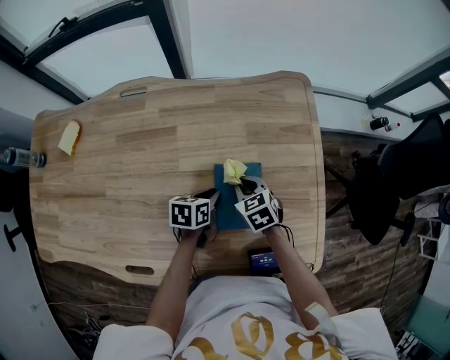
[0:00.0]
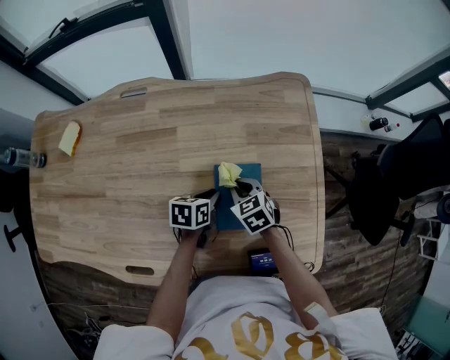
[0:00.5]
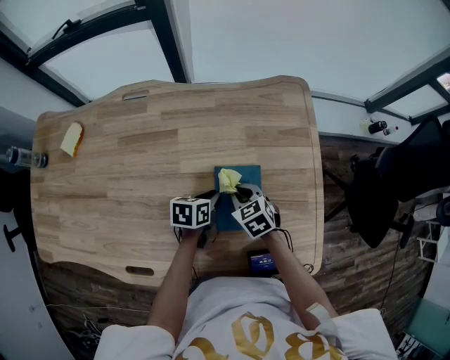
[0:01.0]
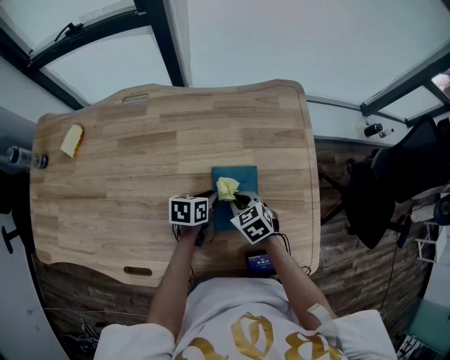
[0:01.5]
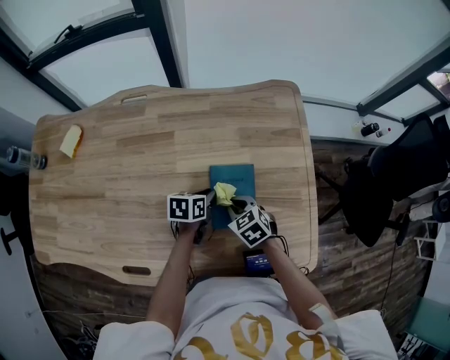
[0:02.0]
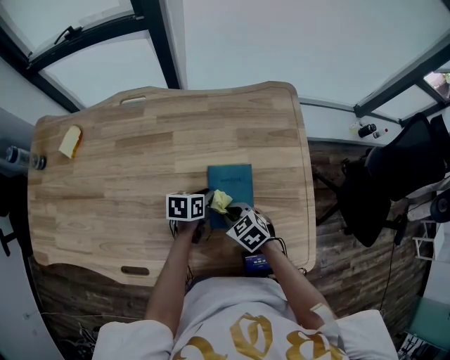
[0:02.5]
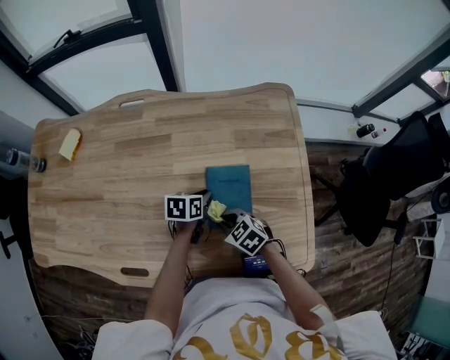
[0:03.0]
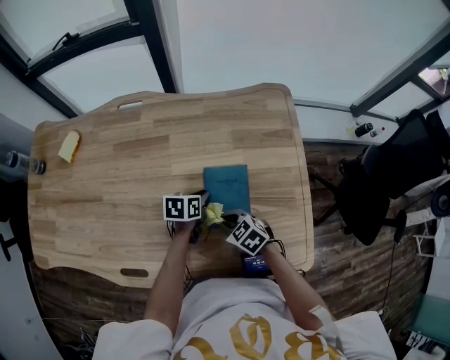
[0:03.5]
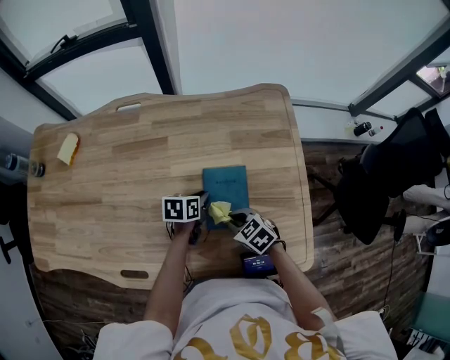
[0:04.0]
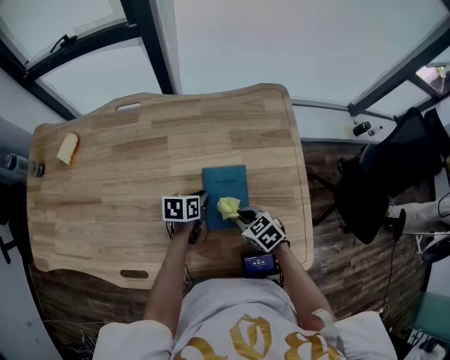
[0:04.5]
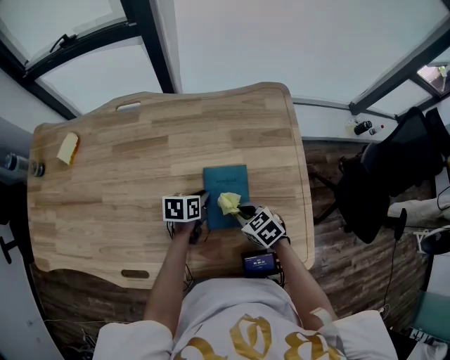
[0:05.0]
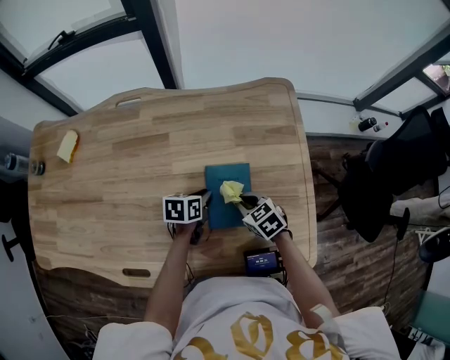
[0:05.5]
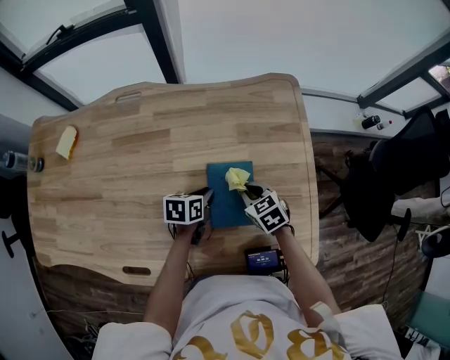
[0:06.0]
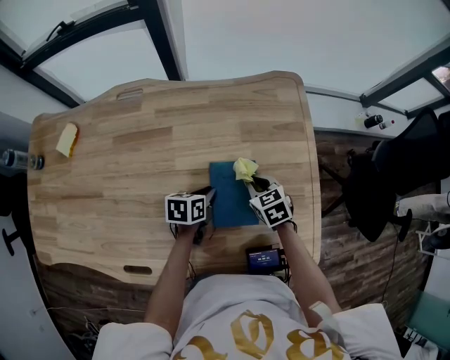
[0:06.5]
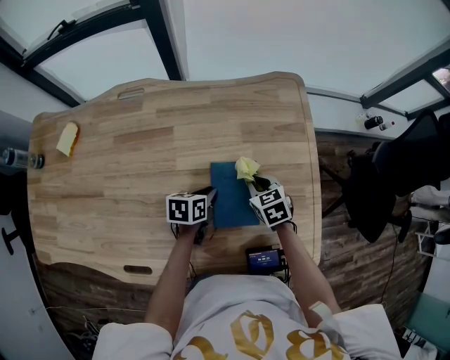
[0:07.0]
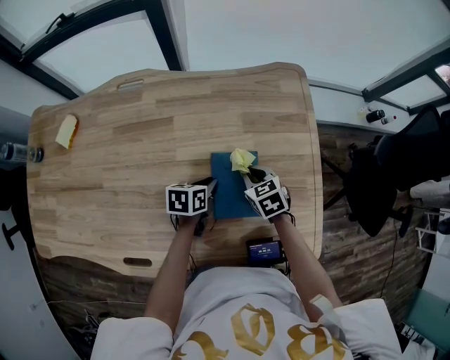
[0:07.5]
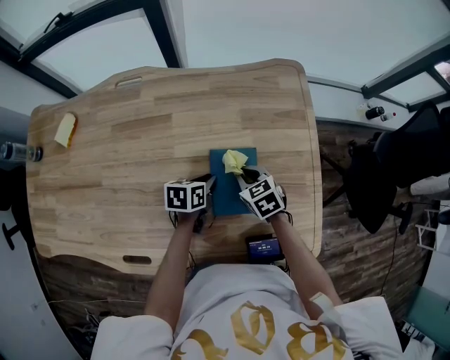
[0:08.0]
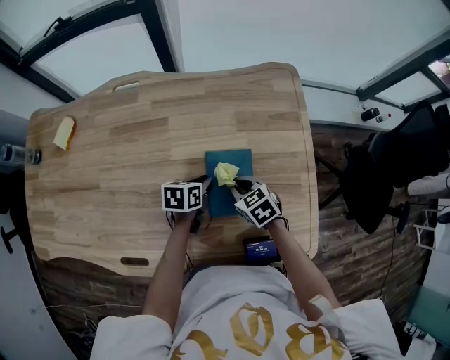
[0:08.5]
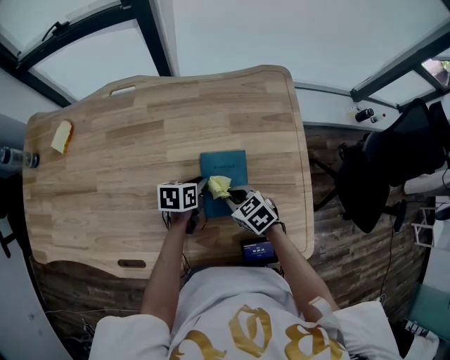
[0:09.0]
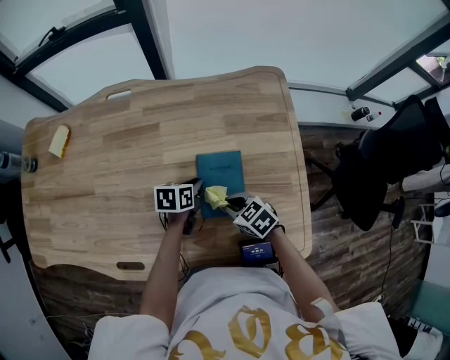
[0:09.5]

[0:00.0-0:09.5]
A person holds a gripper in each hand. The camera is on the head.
0.0 to 2.0 s: The right gripper shifts about 5 cm backward.
2.0 to 4.0 s: The right gripper moves backward, about 5 cm.
4.0 to 5.5 s: The right gripper is displaced forward by approximately 5 cm.
5.5 to 7.5 s: The right gripper heads forward, covering approximately 5 cm.
7.5 to 9.5 s: The right gripper travels backward by approximately 10 cm, and rotates some 20 degrees.

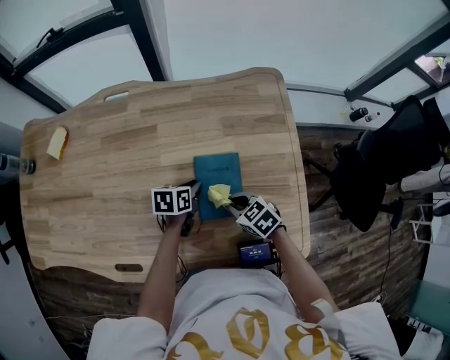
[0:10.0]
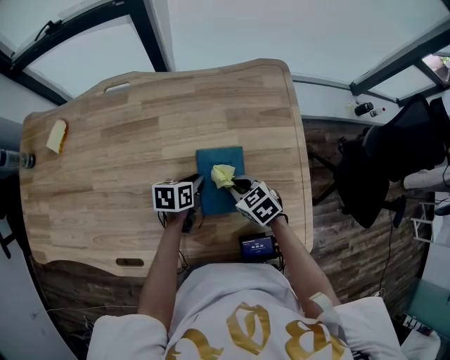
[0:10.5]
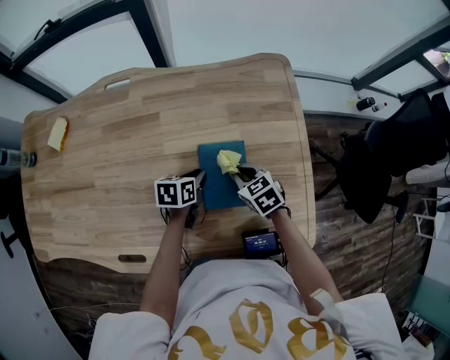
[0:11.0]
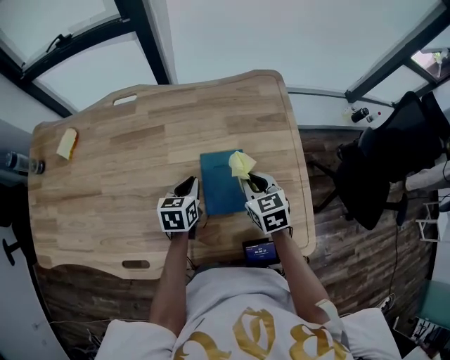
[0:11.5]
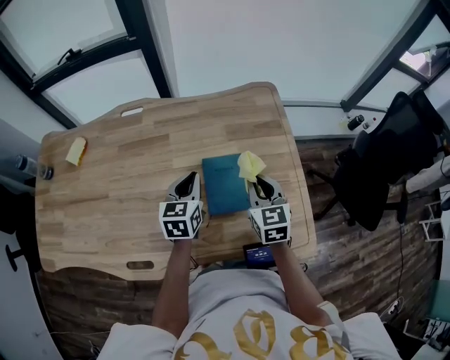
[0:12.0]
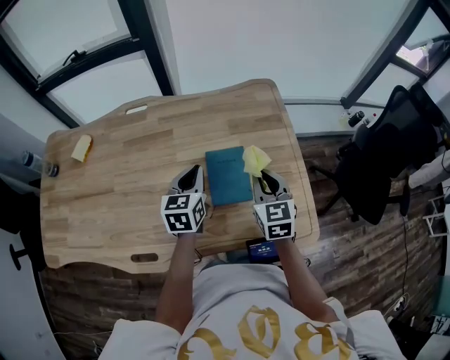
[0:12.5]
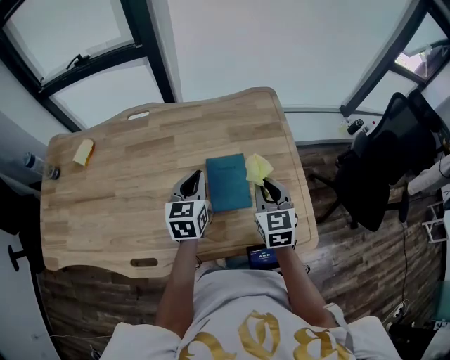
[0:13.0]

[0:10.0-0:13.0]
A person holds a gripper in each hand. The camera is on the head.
10.0 to 11.5 s: The left gripper is displaced upward by about 5 cm, and rotates some 20 degrees; the right gripper moves upward and forward, approximately 10 cm, and rotates approximately 30 degrees.
11.5 to 13.0 s: The left gripper heads upward, covering roughly 15 cm, and rotates approximately 20 degrees. The right gripper moves upward and backward, some 10 cm, and swivels approximately 20 degrees.

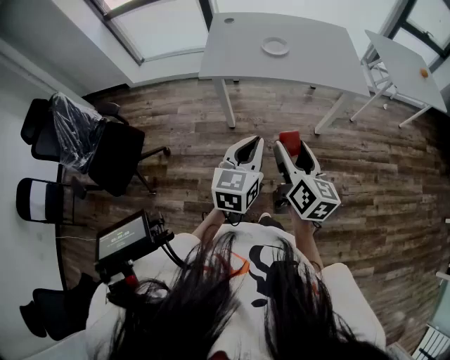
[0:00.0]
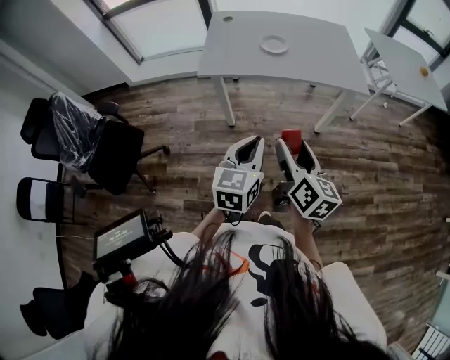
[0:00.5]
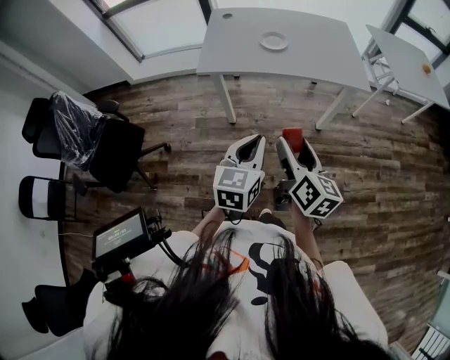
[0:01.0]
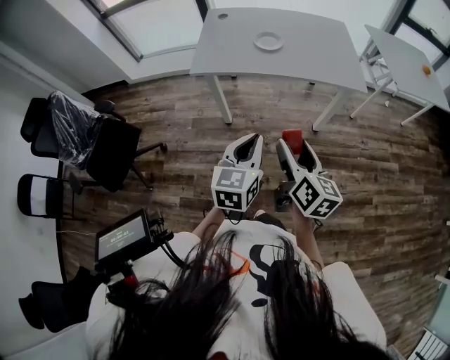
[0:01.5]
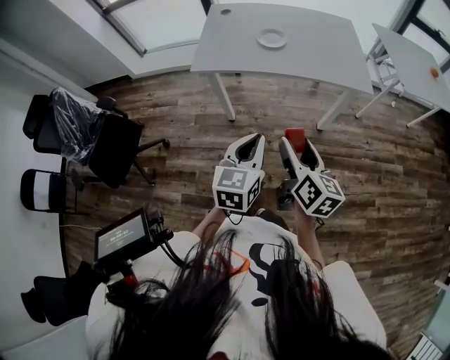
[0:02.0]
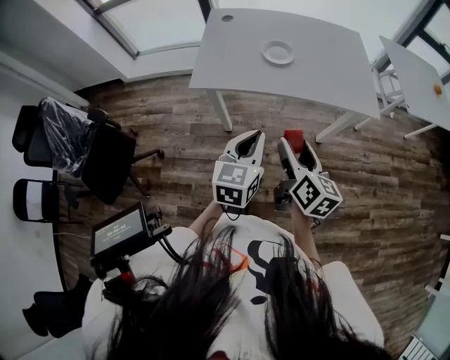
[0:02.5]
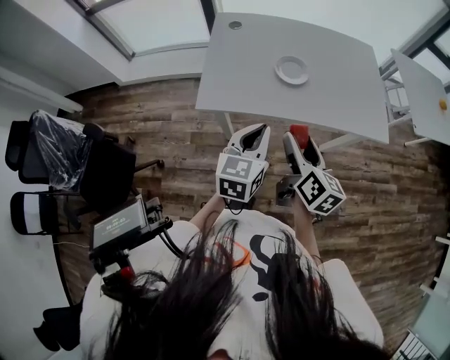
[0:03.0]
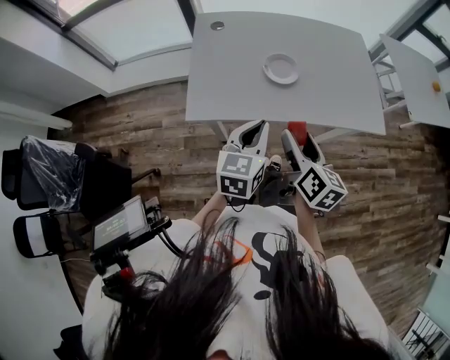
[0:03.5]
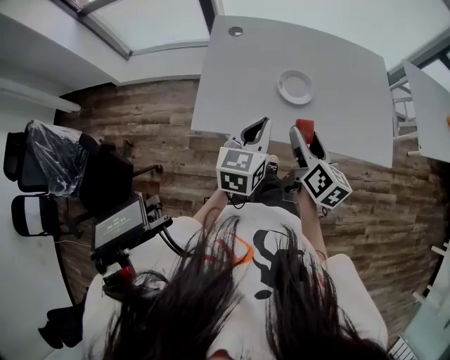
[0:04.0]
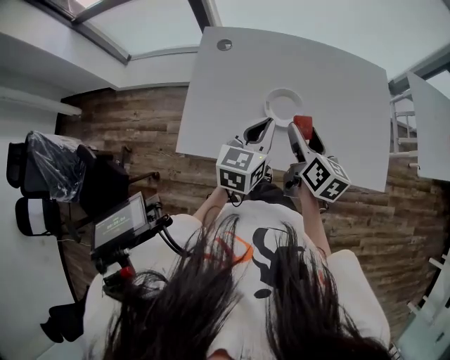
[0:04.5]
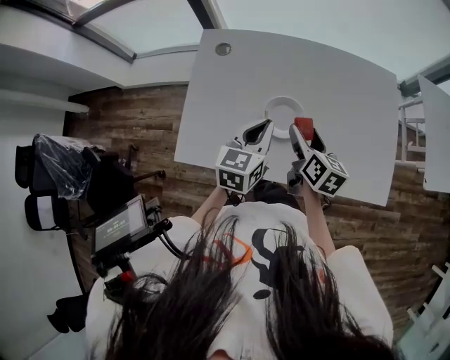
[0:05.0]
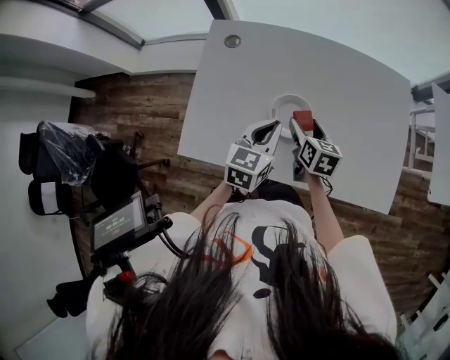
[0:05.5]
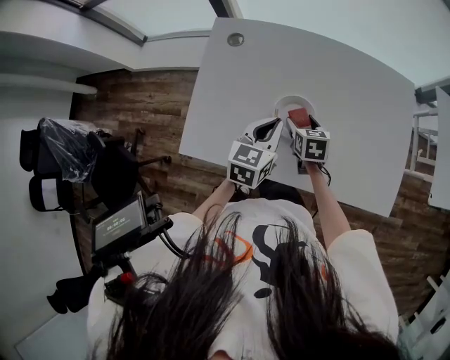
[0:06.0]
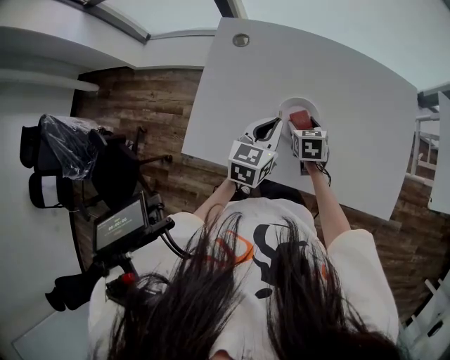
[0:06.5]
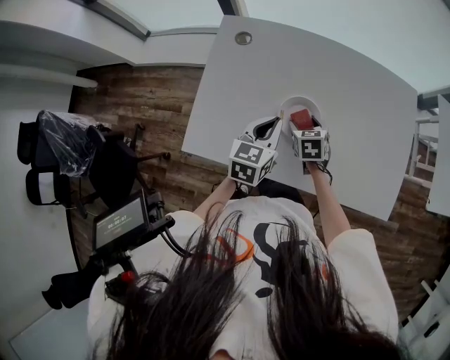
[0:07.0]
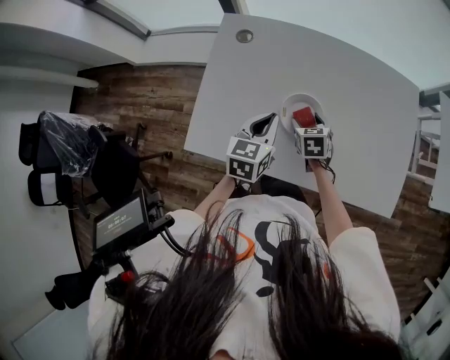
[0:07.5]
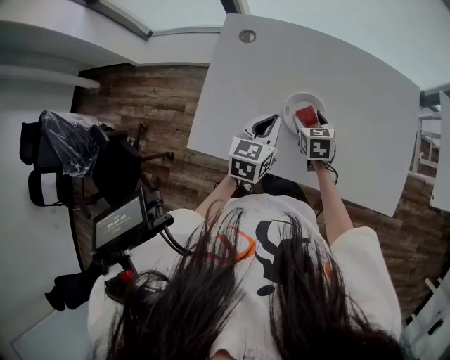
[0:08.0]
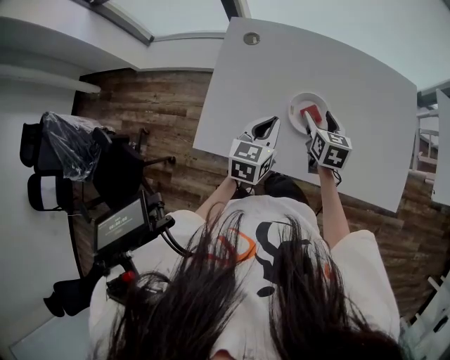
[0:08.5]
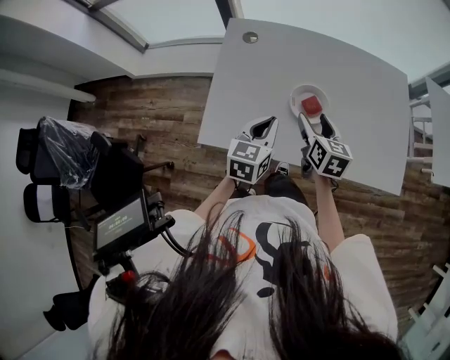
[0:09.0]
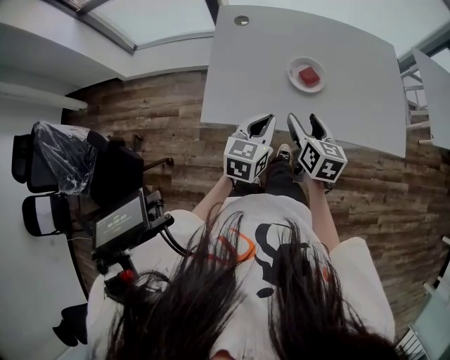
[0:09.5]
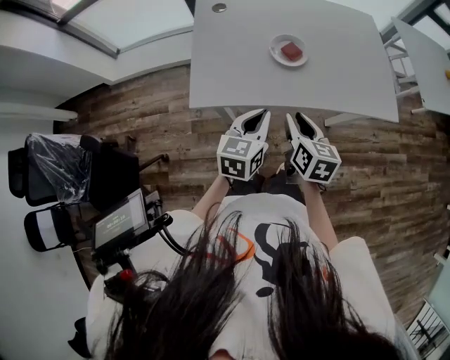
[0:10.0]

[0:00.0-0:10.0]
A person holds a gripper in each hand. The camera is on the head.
0.0 to 2.0 s: Both grippers move to the right, roughly 5 cm.
2.0 to 4.0 s: The two grippers go roughly 40 cm forward.
4.0 to 6.0 s: The right gripper travels forward and downward by some 30 cm, and turns by roughly 40 degrees, while the left gripper heads forward, downward and to the right, covering roughly 20 cm.
6.0 to 8.0 s: The grippers stay close to where they were, moving slightly.
8.0 to 10.0 s: The left gripper heads backward, covering roughly 25 cm; the right gripper moves backward and upward, some 30 cm, changes its angle by approximately 30 degrees, and closes its fingers.

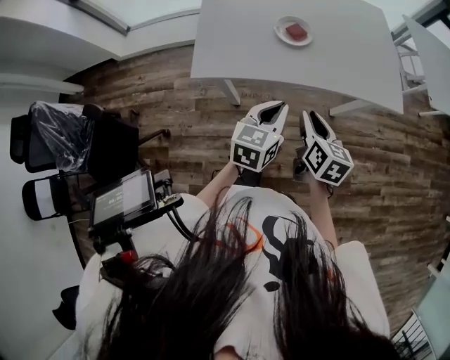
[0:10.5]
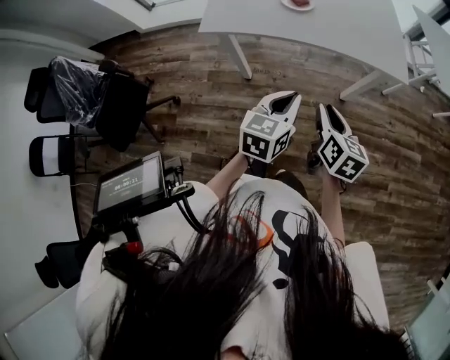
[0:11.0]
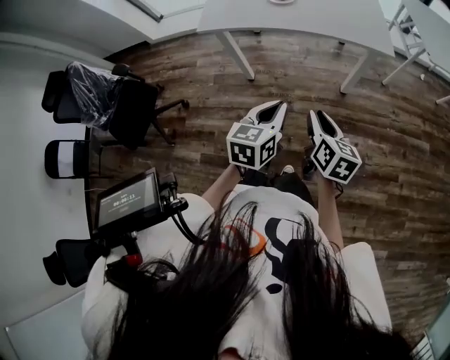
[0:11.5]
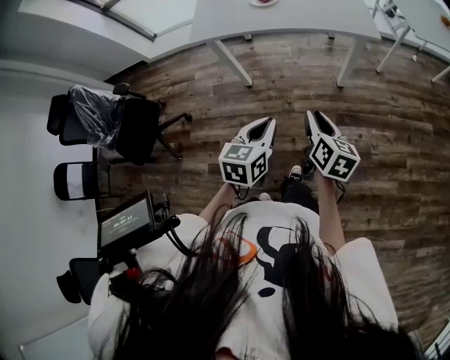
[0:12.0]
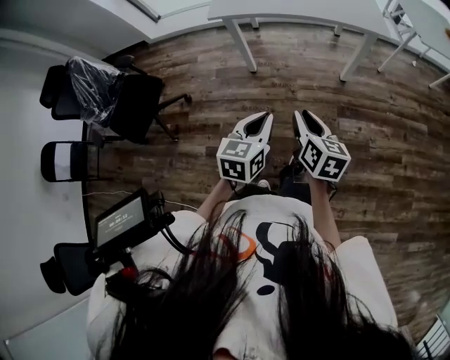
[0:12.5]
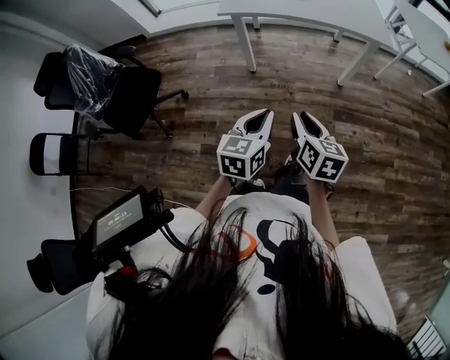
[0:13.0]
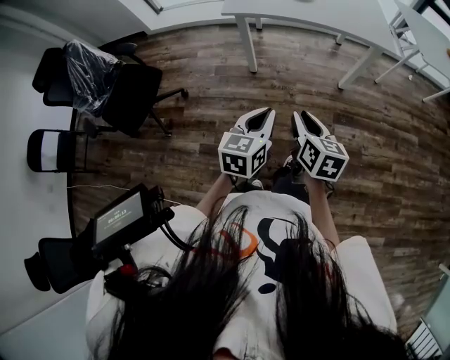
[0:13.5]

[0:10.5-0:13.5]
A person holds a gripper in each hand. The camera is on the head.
10.5 to 12.0 s: The right gripper moves backward and to the right, about 30 cm. The left gripper travels backward by roughly 30 cm.
12.0 to 13.5 s: Both grippers move to the left and backward, roughly 20 cm.

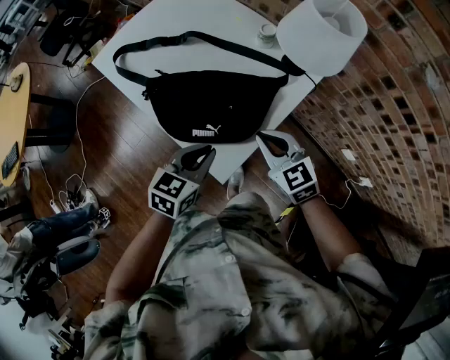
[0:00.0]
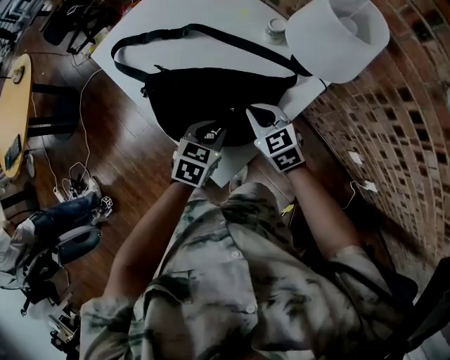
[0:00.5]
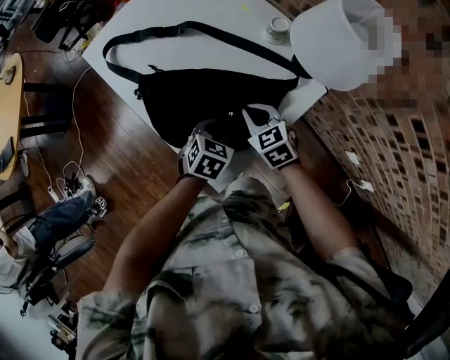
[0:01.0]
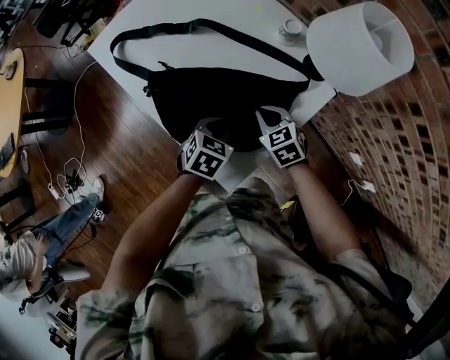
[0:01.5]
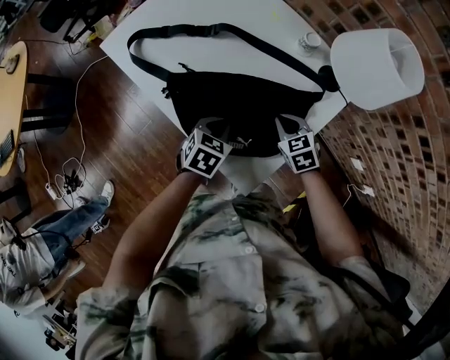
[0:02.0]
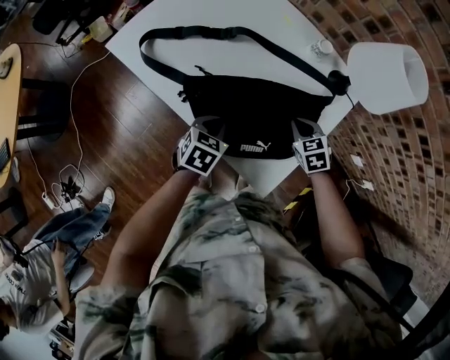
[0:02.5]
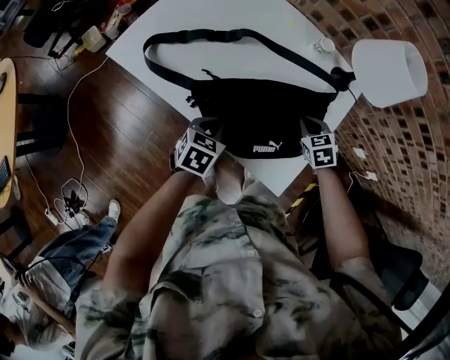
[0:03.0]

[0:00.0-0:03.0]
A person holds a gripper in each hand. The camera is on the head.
0.0 to 1.5 s: The grippers both shift downward and forward by some 15 cm. The left gripper changes its angle by approximately 20 degrees.
1.5 to 3.0 s: The right gripper changes its angle by roughly 20 degrees, while the left gripper shifts some 15 cm to the left.
